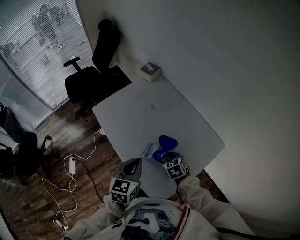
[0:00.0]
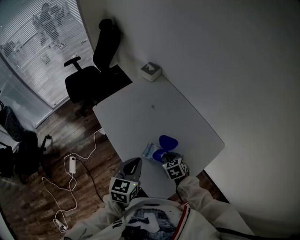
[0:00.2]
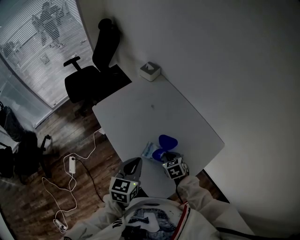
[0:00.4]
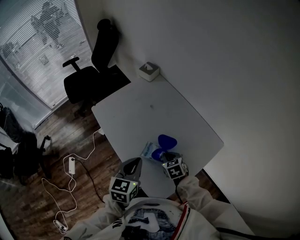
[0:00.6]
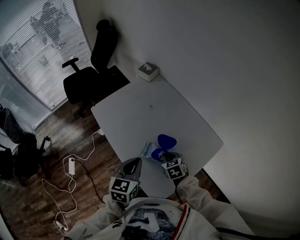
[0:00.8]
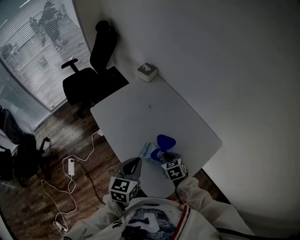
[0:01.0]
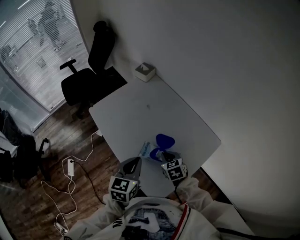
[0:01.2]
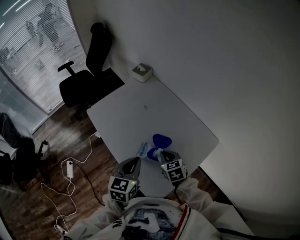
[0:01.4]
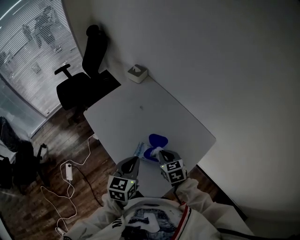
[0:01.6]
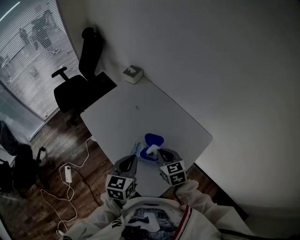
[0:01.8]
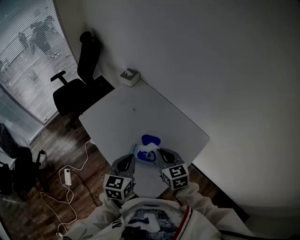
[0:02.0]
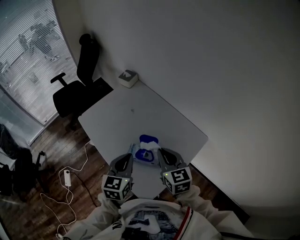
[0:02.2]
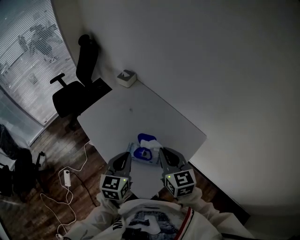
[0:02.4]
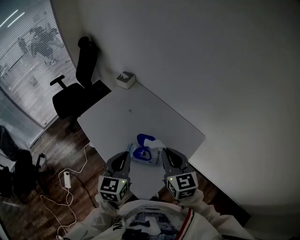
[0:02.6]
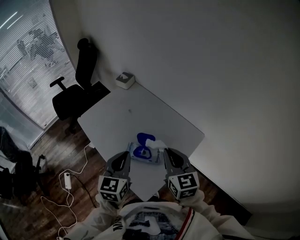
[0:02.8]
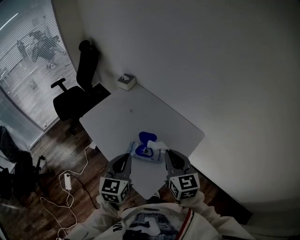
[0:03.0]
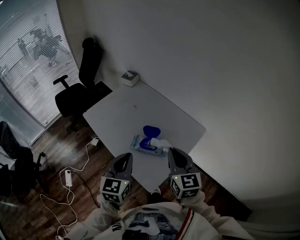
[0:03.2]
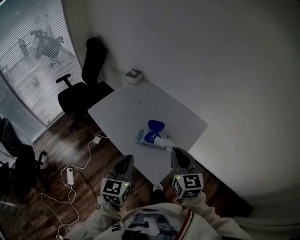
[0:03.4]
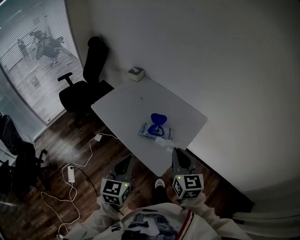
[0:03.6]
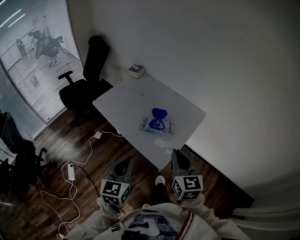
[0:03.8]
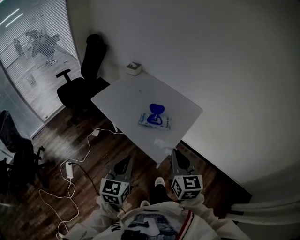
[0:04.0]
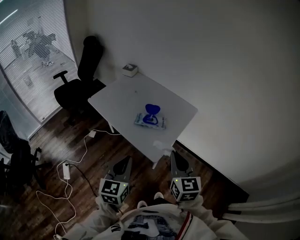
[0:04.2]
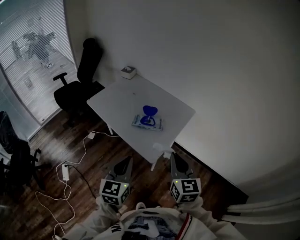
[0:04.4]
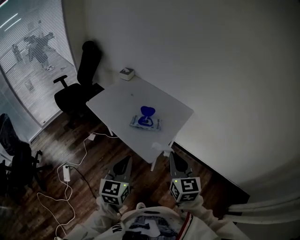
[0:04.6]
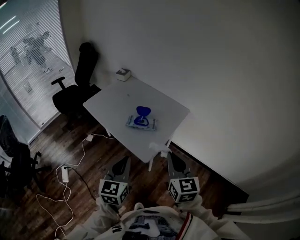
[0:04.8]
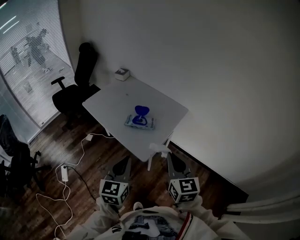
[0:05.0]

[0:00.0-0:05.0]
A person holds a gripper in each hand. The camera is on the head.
0:00.0 to 0:01.6: The right gripper moves upward, roughly 10 cm.
0:01.6 to 0:03.4: The left gripper goes some 15 cm backward and upward. The right gripper heads upward and backward, covering approximately 25 cm, and rotates roughly 30 degrees.
0:03.4 to 0:05.0: The two grippers go approximately 20 cm backward.

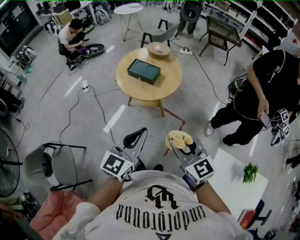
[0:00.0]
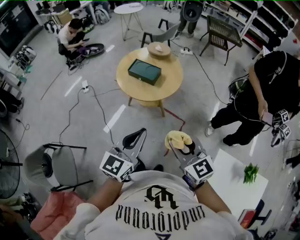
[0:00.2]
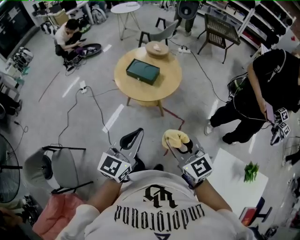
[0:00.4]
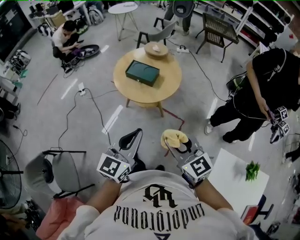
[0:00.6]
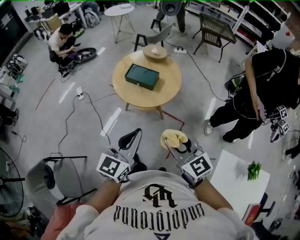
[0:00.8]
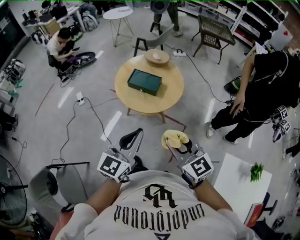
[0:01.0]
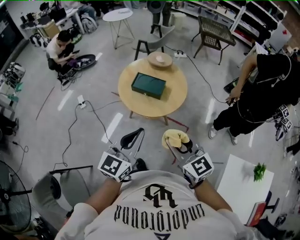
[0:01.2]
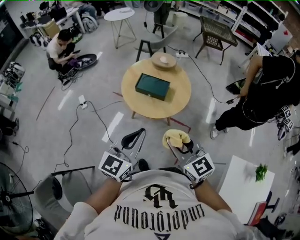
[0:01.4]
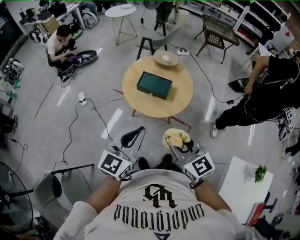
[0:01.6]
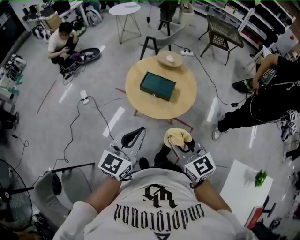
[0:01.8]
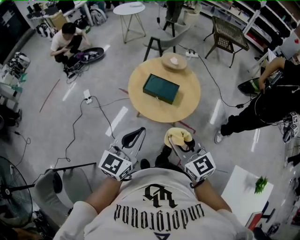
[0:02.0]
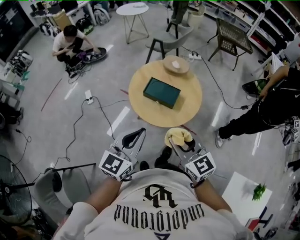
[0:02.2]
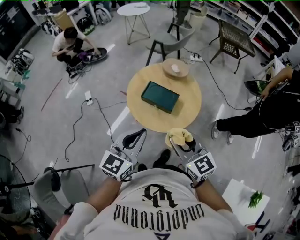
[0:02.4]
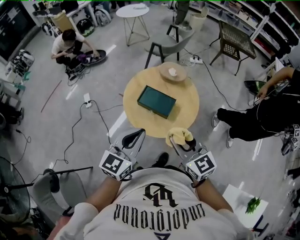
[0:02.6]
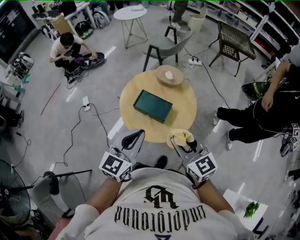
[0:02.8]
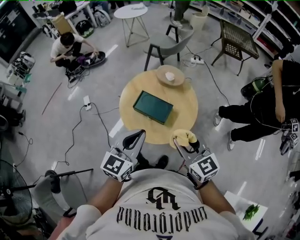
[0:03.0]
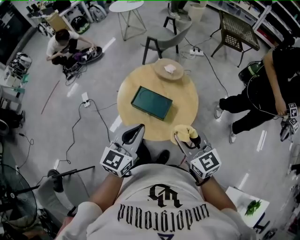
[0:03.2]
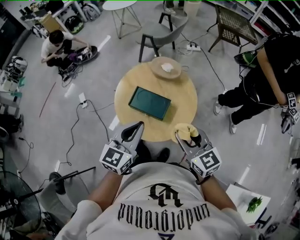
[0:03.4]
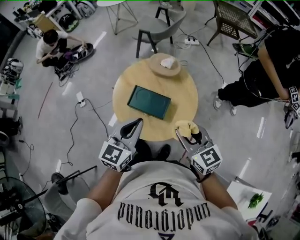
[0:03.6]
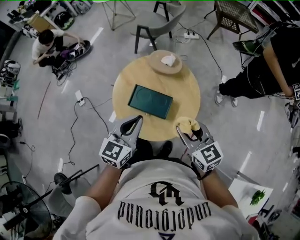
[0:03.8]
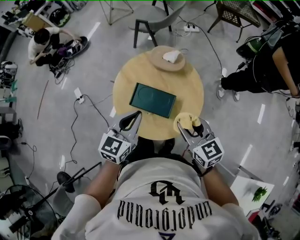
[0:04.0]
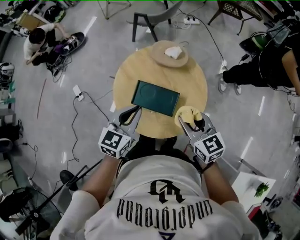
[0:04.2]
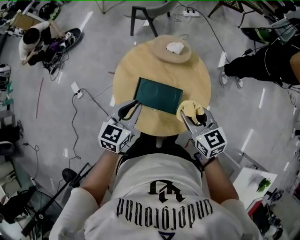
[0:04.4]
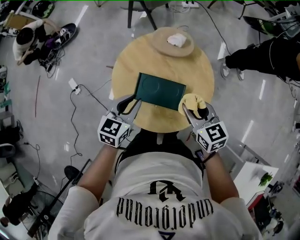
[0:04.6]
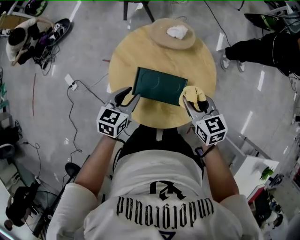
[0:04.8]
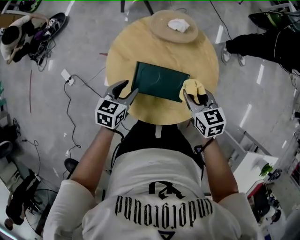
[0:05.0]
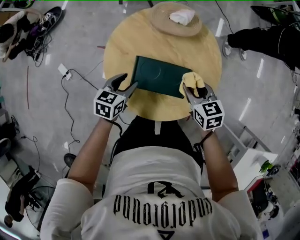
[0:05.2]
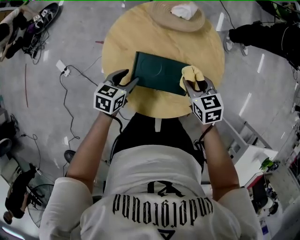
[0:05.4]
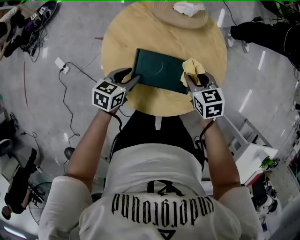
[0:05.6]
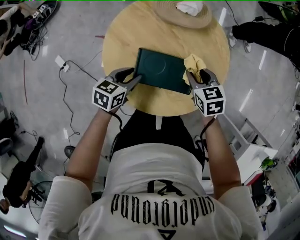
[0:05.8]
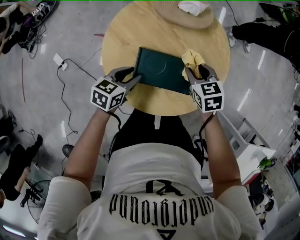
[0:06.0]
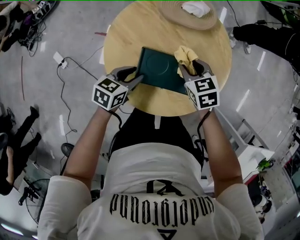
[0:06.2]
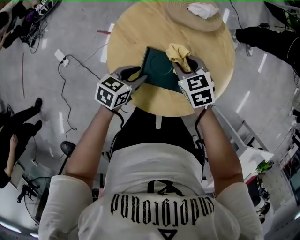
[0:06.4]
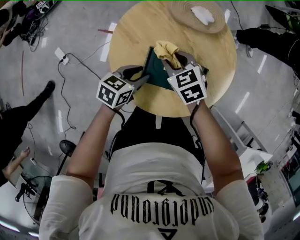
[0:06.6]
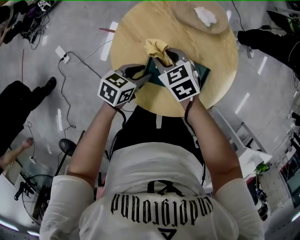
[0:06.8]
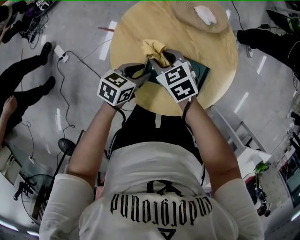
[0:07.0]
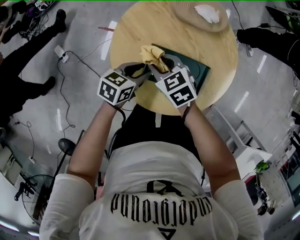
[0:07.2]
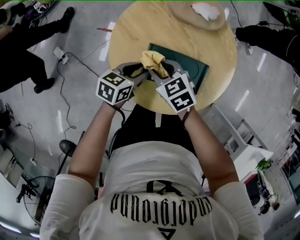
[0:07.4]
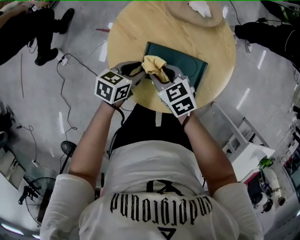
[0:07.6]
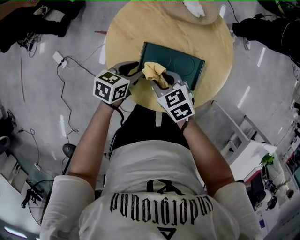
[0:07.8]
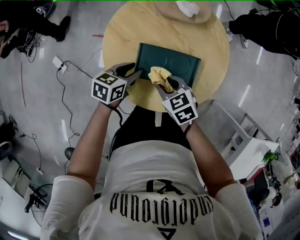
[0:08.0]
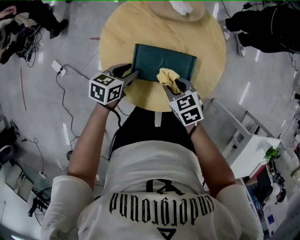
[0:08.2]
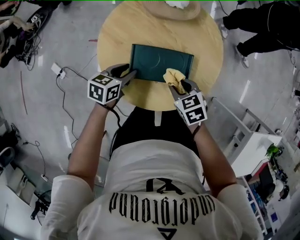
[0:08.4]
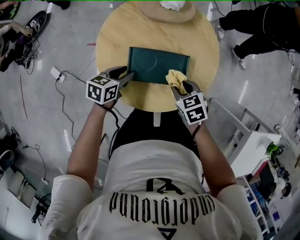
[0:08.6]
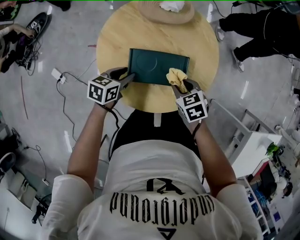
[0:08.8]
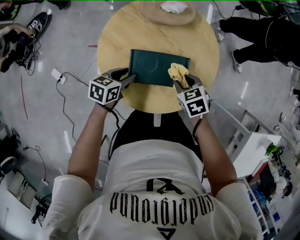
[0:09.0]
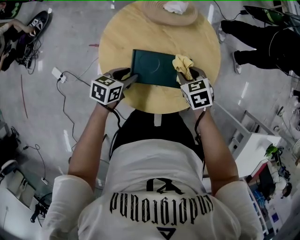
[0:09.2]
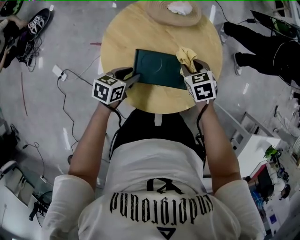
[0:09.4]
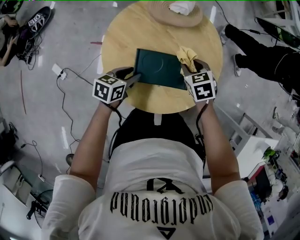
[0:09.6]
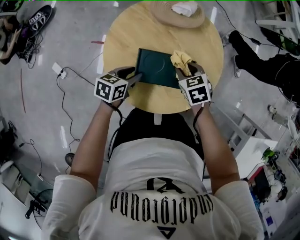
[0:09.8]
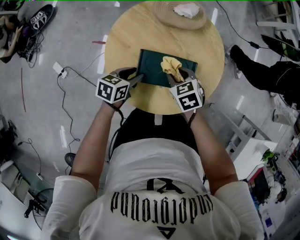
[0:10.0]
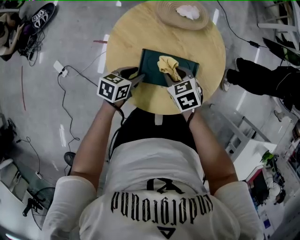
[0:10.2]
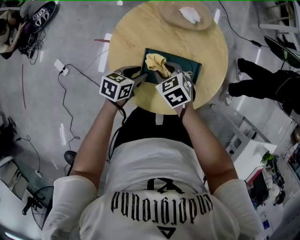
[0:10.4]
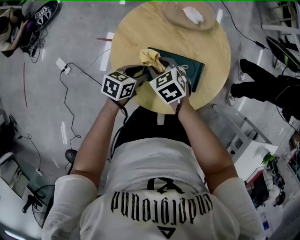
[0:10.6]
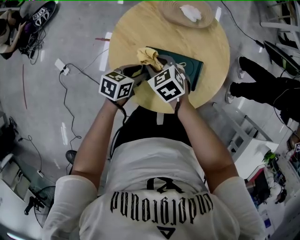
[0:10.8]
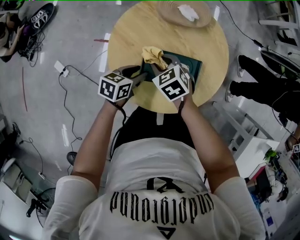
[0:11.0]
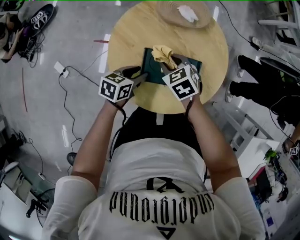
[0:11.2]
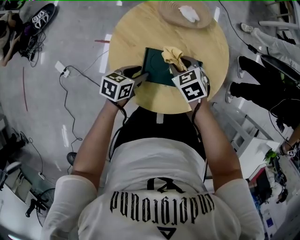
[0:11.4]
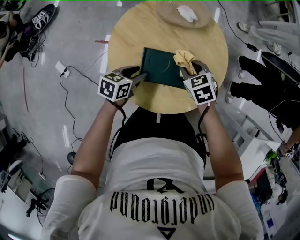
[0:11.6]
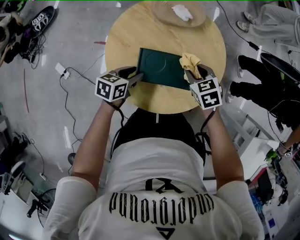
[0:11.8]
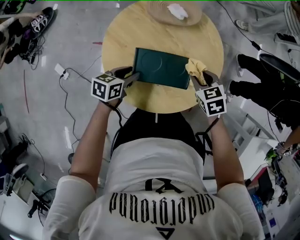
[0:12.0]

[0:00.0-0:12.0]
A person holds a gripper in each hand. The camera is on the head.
0:00.0 to 0:01.6: The right gripper heads to the left and forward, covering about 25 cm. Meanwhile the left gripper shifts about 25 cm forward and to the left.
0:01.6 to 0:03.0: The two grippers go some 25 cm forward and to the right.
0:03.0 to 0:04.4: Both grippers travel together forward and downward, about 25 cm. The left gripper turns by about 20 degrees, while the right gripper turns by roughly 20 degrees.
0:04.4 to 0:06.0: The two grippers go approximately 20 cm downward. The right gripper swivels approximately 30 degrees, while the left gripper changes its angle by some 30 degrees, and opens.
0:06.0 to 0:07.6: The right gripper is displaced to the left and backward by roughly 15 cm.
0:07.6 to 0:09.0: The right gripper moves to the right, approximately 15 cm, and swivels about 20 degrees.
0:09.0 to 0:10.4: The right gripper travels to the left by about 15 cm.
0:10.4 to 0:12.0: The right gripper shifts roughly 20 cm to the right.

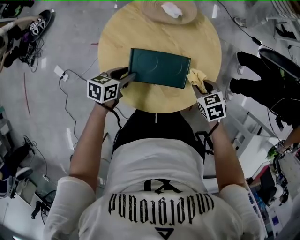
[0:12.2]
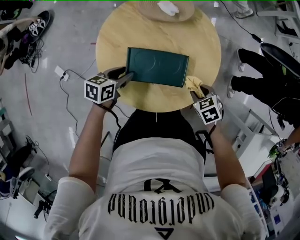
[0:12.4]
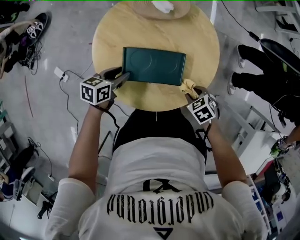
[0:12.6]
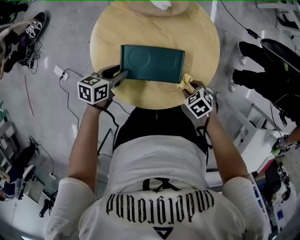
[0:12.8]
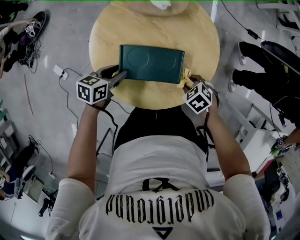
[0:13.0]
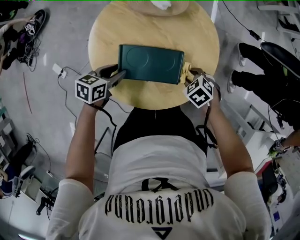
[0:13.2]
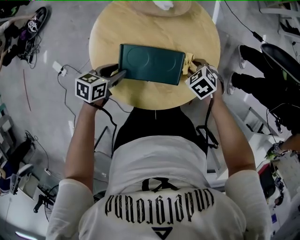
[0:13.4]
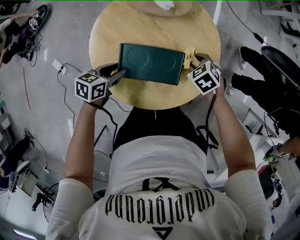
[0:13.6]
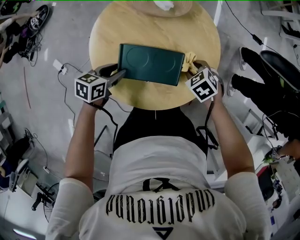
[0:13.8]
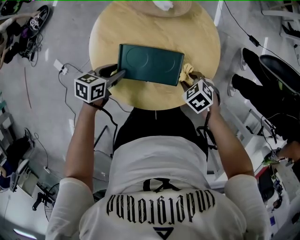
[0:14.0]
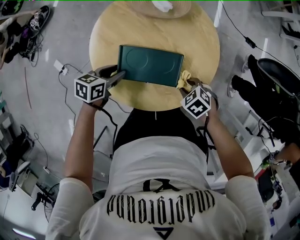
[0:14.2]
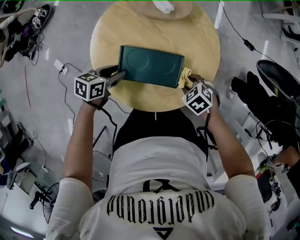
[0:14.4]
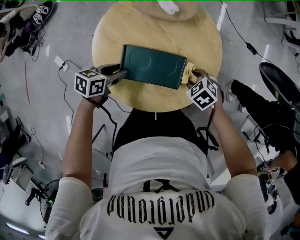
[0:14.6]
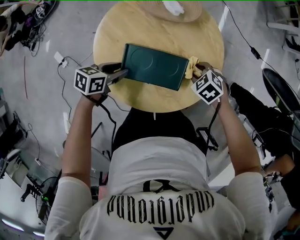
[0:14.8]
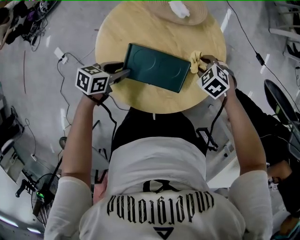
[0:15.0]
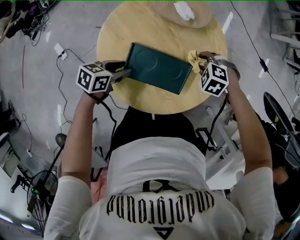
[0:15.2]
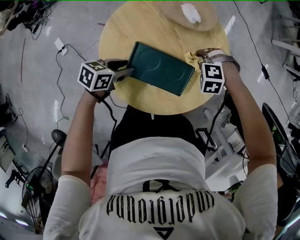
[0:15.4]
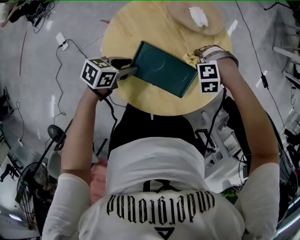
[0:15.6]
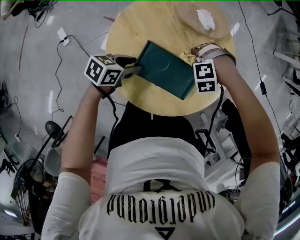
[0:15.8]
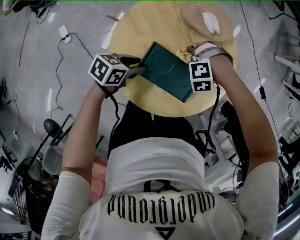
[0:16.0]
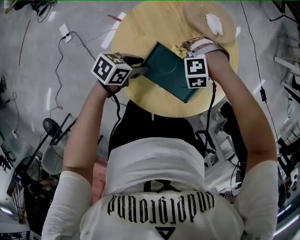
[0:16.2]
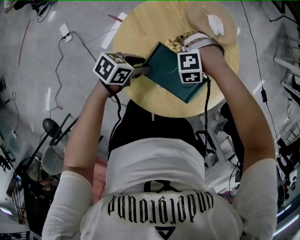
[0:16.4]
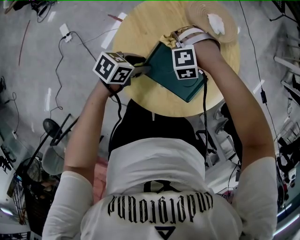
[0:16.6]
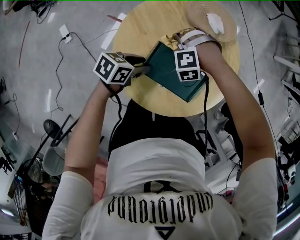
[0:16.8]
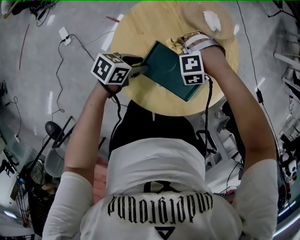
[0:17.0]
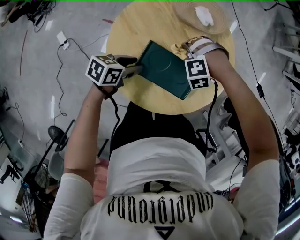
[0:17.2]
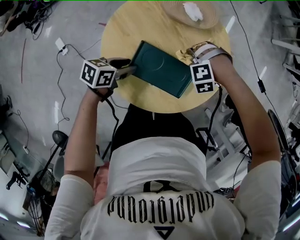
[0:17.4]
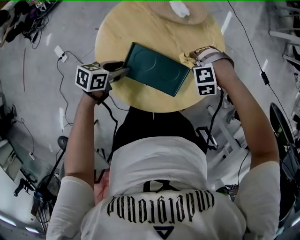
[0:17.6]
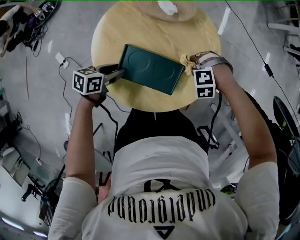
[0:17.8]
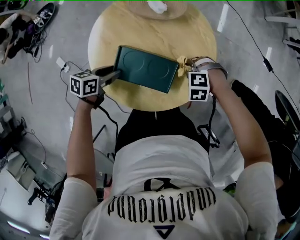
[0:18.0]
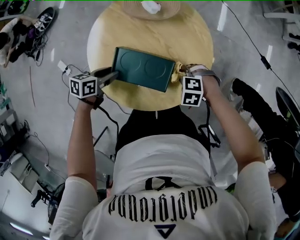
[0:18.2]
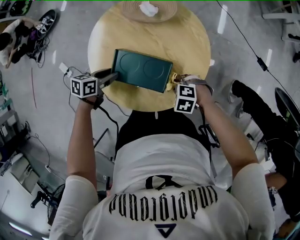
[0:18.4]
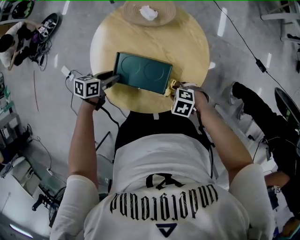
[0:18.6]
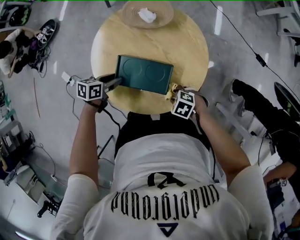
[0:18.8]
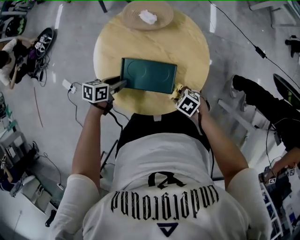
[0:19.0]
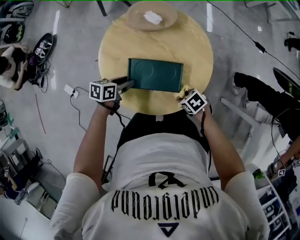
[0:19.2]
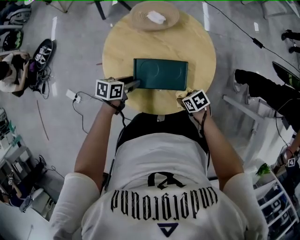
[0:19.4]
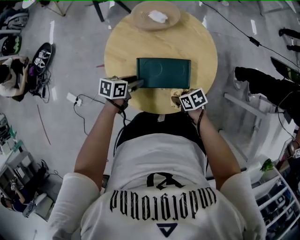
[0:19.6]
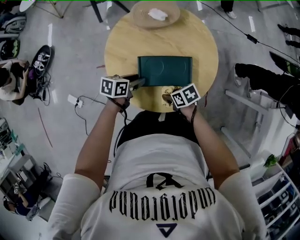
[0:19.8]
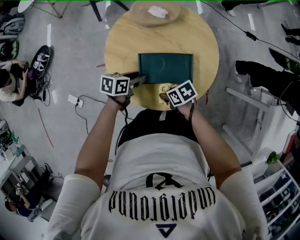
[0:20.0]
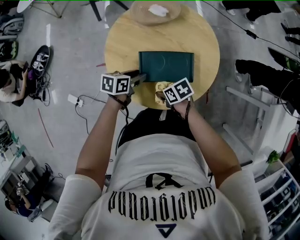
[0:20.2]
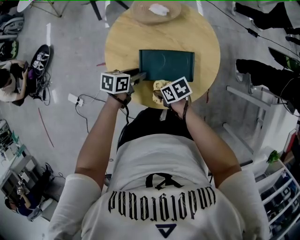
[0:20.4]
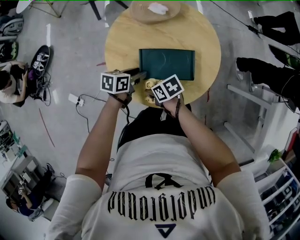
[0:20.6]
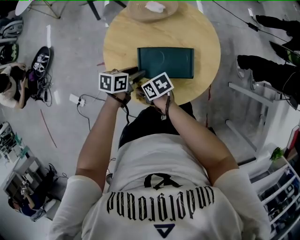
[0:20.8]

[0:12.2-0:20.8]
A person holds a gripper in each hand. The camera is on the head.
0:12.2 to 0:13.6: The right gripper moves some 10 cm.
0:13.6 to 0:15.0: The right gripper rotates some 20 degrees.
0:15.0 to 0:16.6: The right gripper moves about 25 cm, and twists about 70 degrees counterclockwise, seen from behind.
0:16.6 to 0:18.0: The right gripper shifts by about 25 cm, and rotates roughly 40 degrees.
0:18.0 to 0:19.4: The right gripper moves roughly 15 cm, and twists about 90 degrees clockwise, seen from behind.
0:19.4 to 0:20.8: The right gripper shifts by roughly 25 cm, and rotates about 20 degrees.
